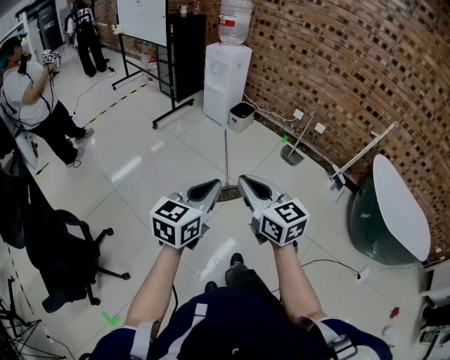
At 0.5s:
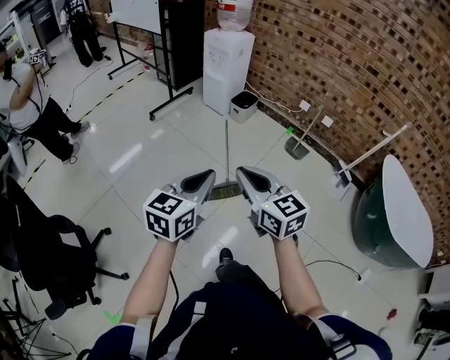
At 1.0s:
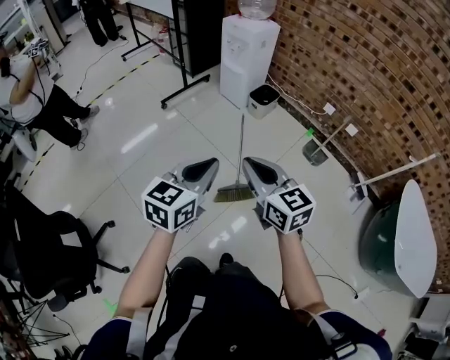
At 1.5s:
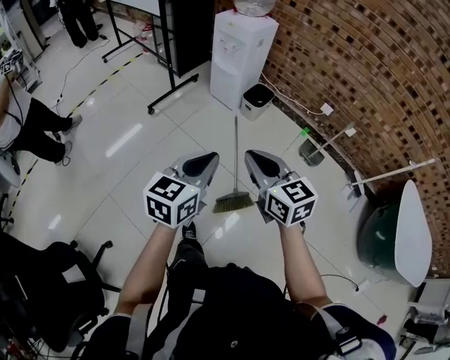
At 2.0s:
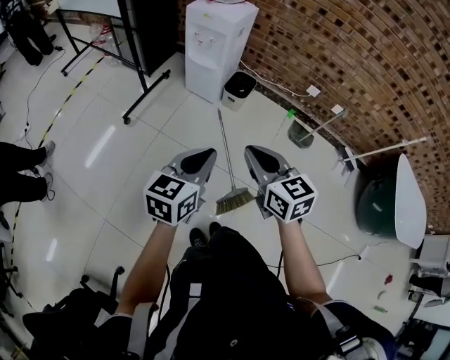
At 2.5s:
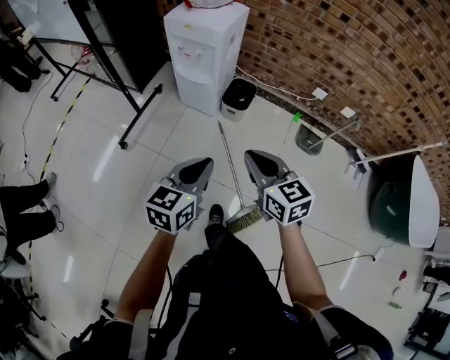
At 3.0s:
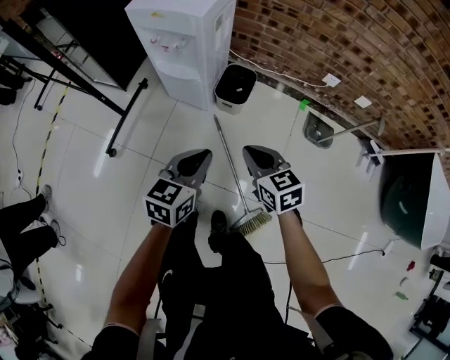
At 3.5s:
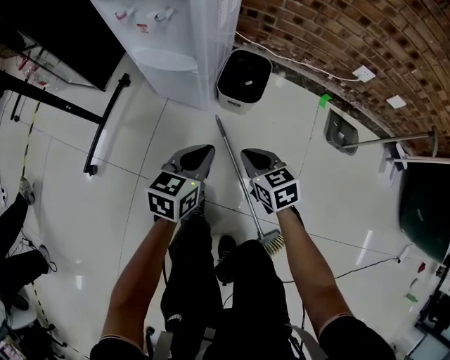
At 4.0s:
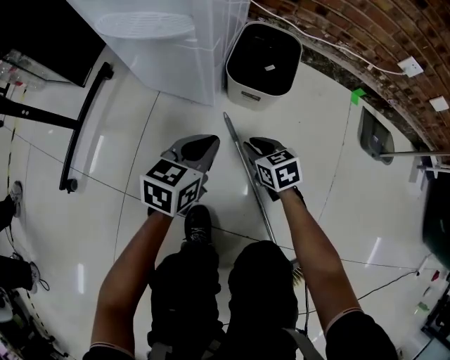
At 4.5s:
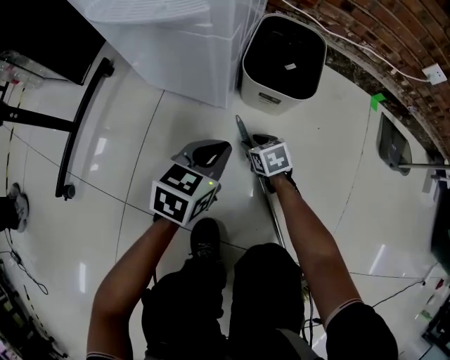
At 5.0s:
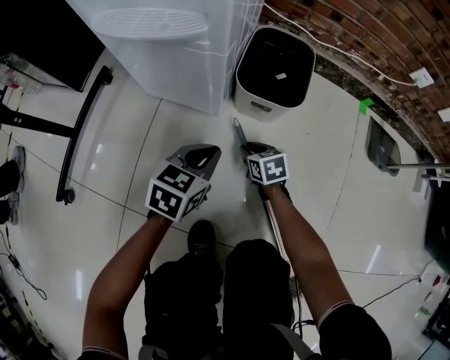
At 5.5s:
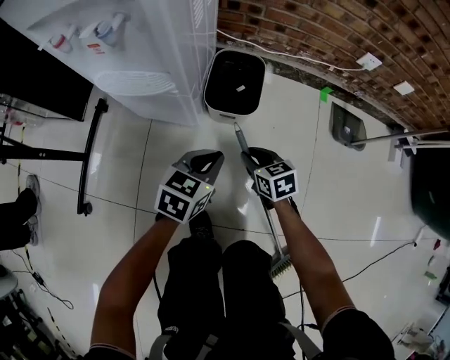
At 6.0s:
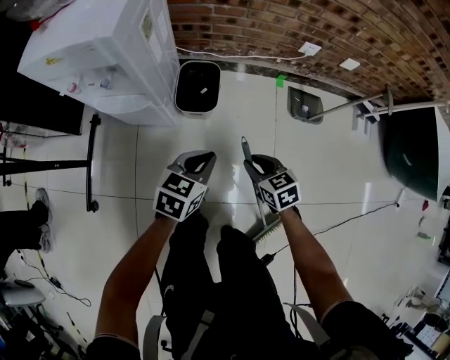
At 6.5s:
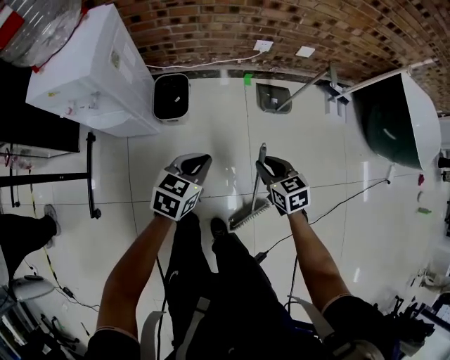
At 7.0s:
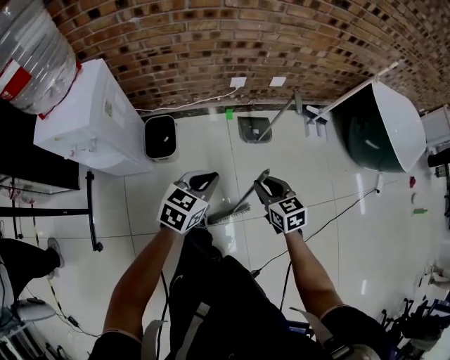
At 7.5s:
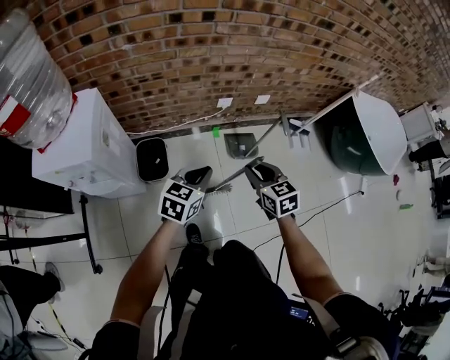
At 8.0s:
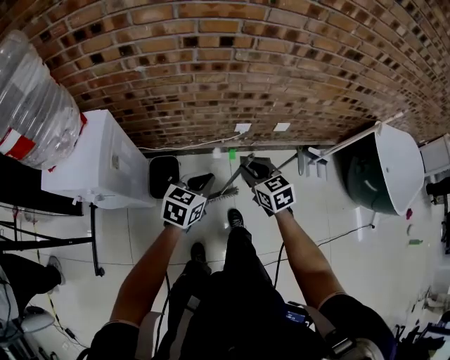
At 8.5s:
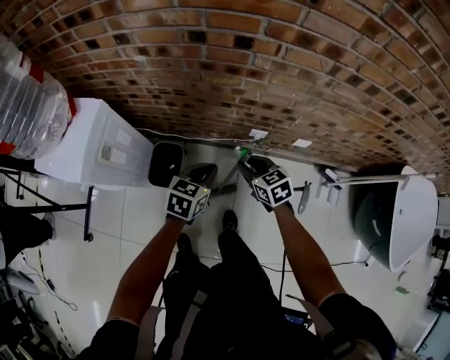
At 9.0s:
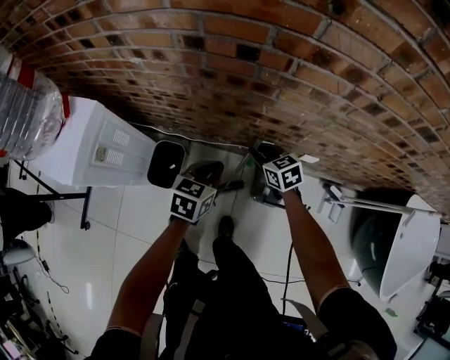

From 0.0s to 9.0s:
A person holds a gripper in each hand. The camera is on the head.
From 0.0s to 2.0s: The two grippers travel together, forward, about 50 cm.
From 2.0s to 4.5s: The pair of grippers is taken forward, some 50 cm. The grippers both shift downward by about 80 cm. The right gripper angles its fingers downward, by roughly 40 degrees, and opens; the left gripper turns by about 30 degrees.
From 4.5s to 7.0s: Both grippers move upward, some 60 cm. The left gripper rotates about 30 degrees. The right gripper changes its angle by about 40 degrees.
From 7.0s to 9.0s: The right gripper reaches approximately 10 cm upward, then returns, and turns by roughly 30 degrees, while the left gripper moves roughly 35 cm, and swivels approximately 30 degrees.

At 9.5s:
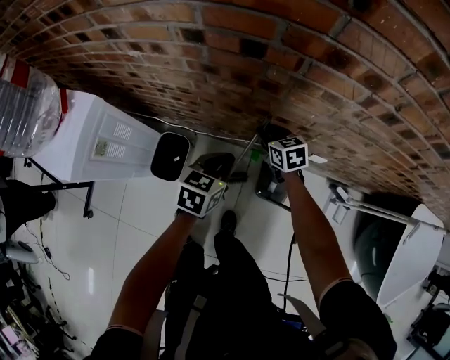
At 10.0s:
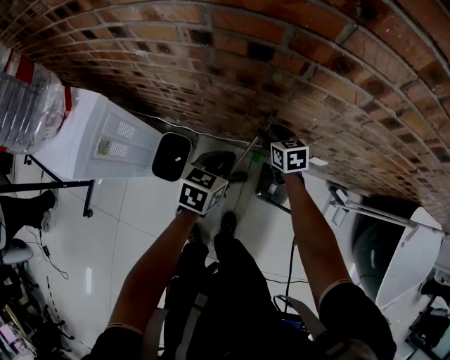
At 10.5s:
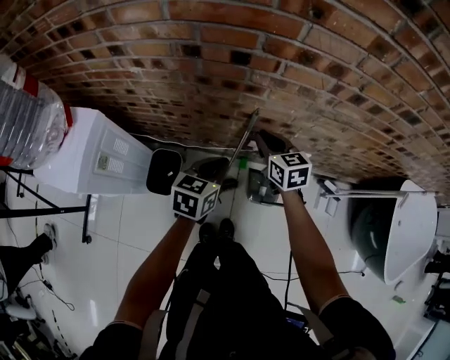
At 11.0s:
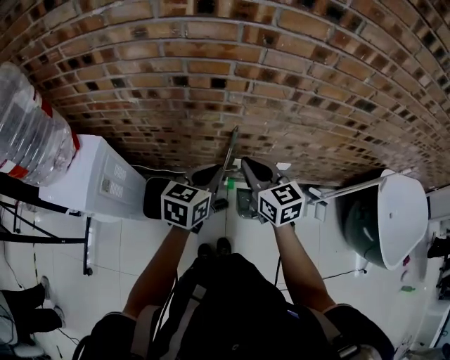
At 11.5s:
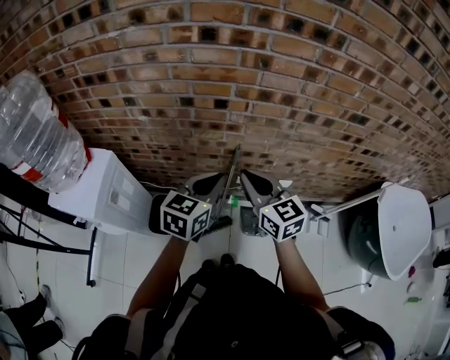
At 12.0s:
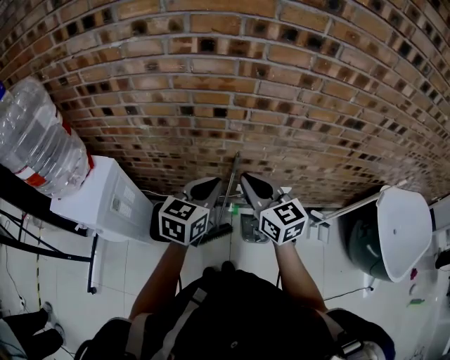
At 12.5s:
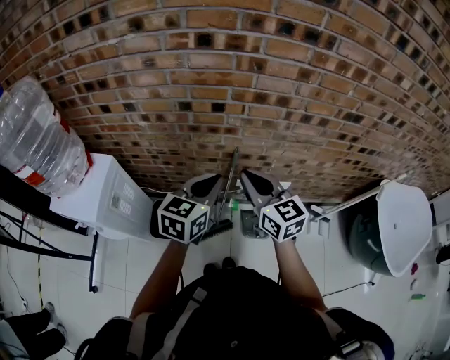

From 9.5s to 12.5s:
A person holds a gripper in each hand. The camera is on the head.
From 9.5s to 11.0s: The right gripper is displaced upward and backward by roughly 30 cm, changes its angle by about 30 degrees, and opens and closes again; the left gripper is displaced upward by approximately 15 cm.
From 11.0s to 12.5s: Both grippers move upward, roughly 5 cm.

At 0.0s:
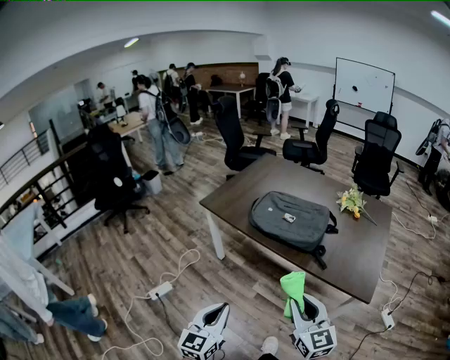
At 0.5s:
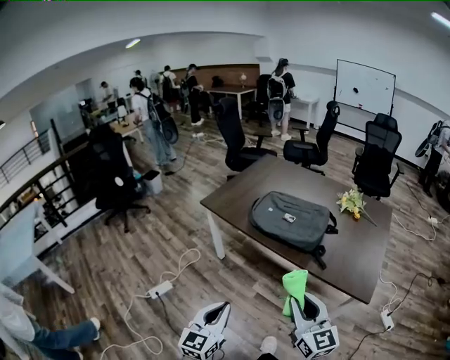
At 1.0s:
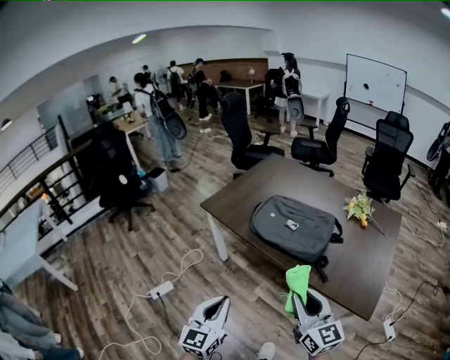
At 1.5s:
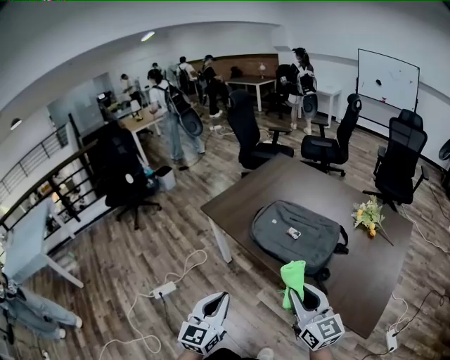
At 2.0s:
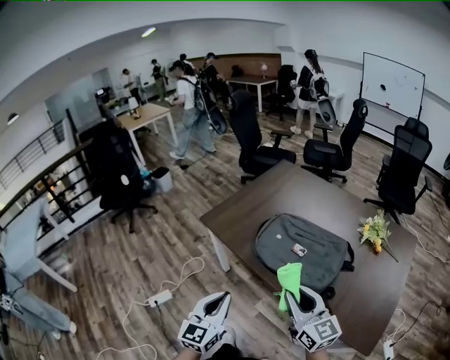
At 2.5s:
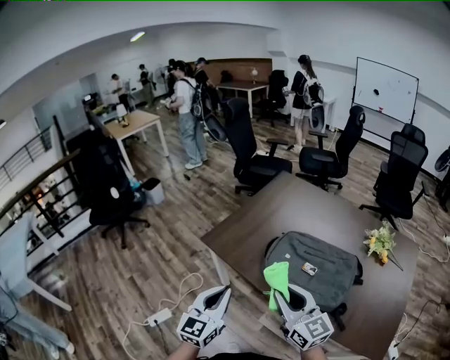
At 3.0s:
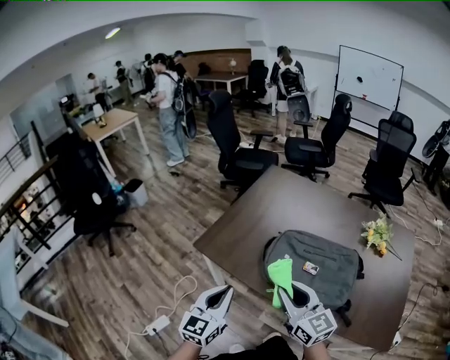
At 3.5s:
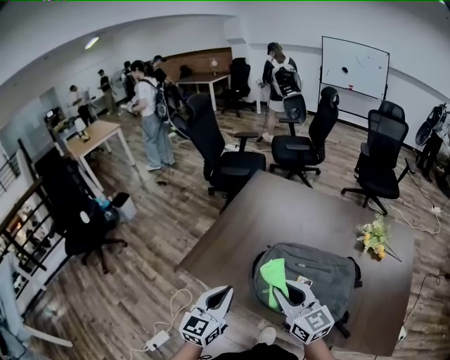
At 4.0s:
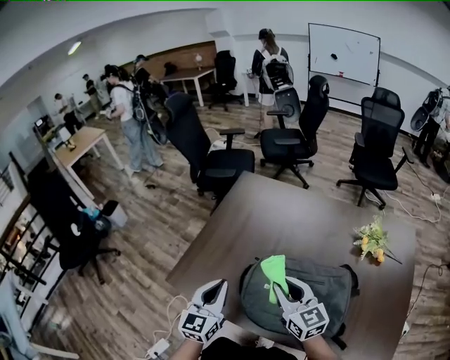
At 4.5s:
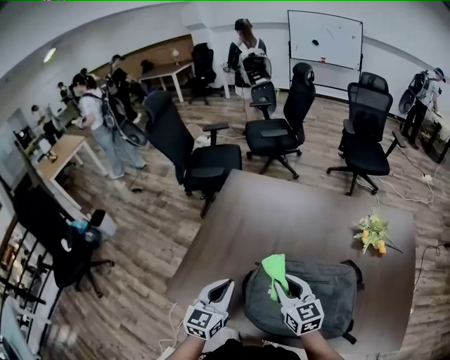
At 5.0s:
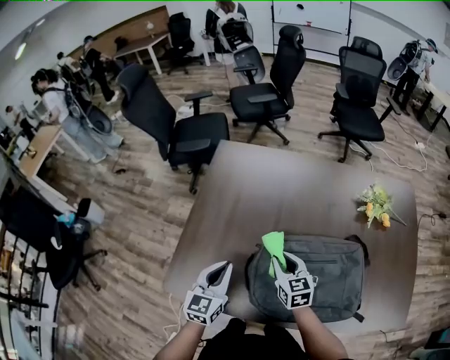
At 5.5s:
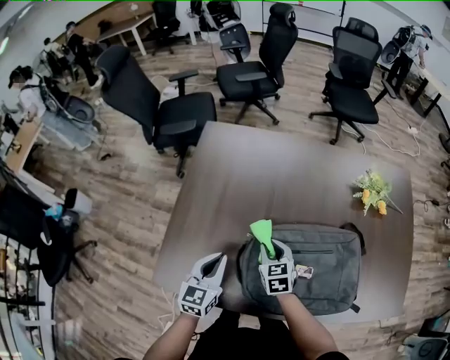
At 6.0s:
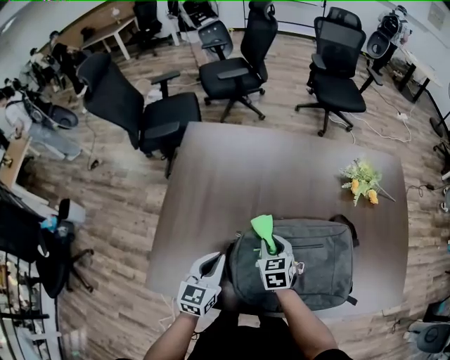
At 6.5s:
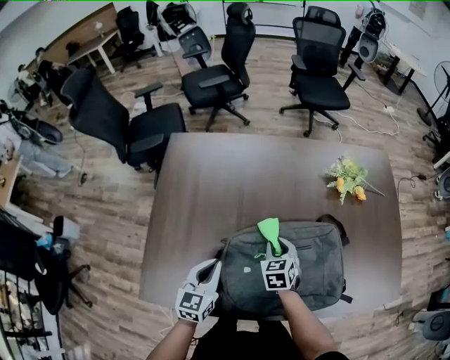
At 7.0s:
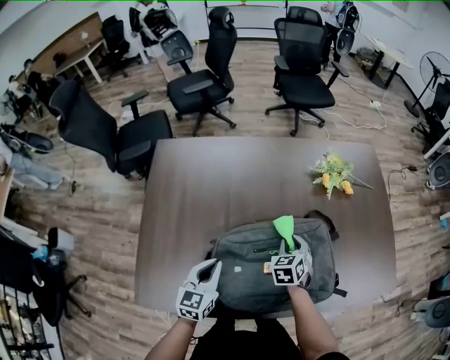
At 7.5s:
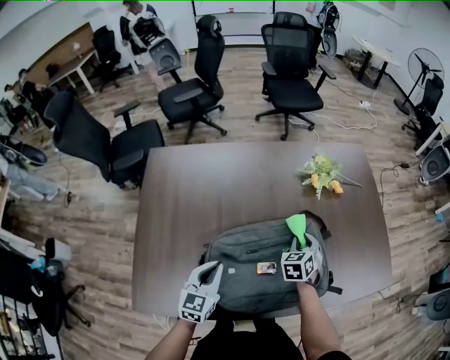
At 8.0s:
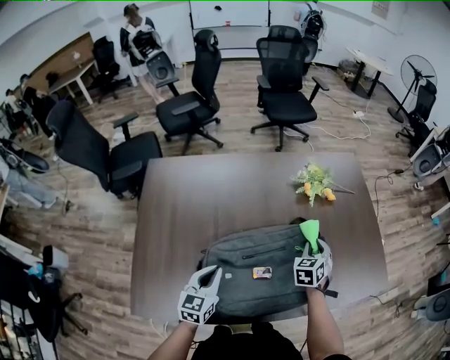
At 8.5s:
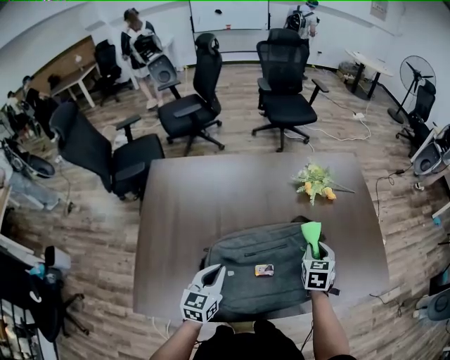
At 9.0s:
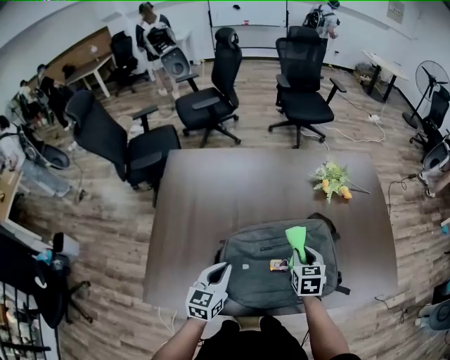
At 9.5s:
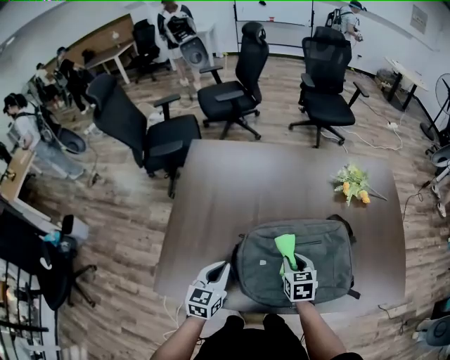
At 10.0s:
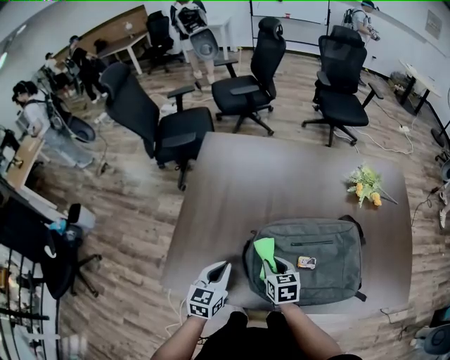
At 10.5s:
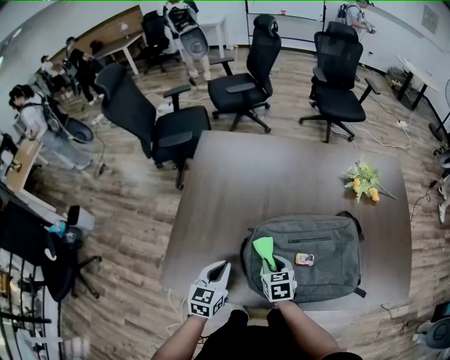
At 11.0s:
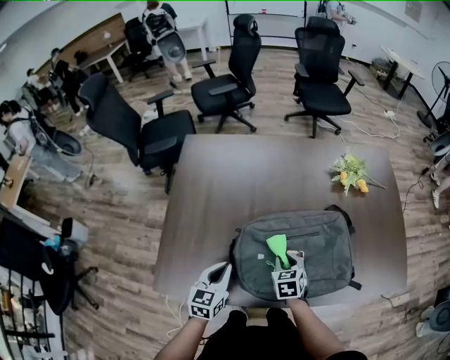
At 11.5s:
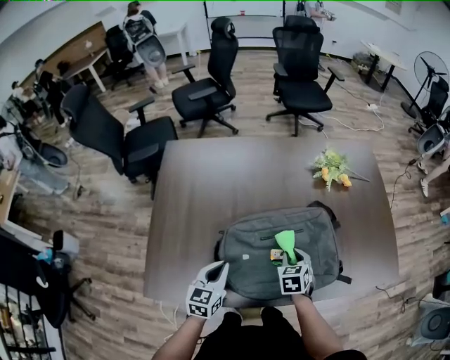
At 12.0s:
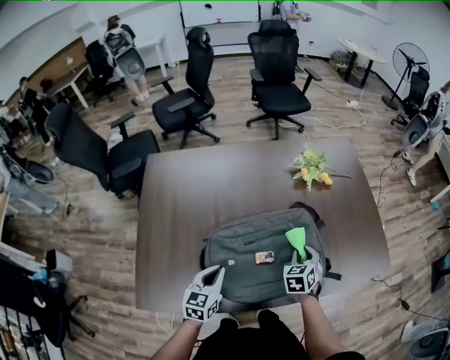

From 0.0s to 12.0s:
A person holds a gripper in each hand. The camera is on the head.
From 0.0s to 2.0s: Both grippers travel together forward, roughly 20 cm.
From 2.0s to 4.0s: Both grippers move forward, some 35 cm.
From 4.0s to 6.0s: The left gripper travels downward by roughly 10 cm, and rotates approximately 30 degrees. Meanwhile the right gripper goes some 20 cm downward, and angles its fingers downward, by roughly 30 degrees.
From 6.0s to 8.0s: The right gripper ends up some 30 cm from where it was, and turns by some 40 degrees; the left gripper changes place by some 10 cm.
From 8.0s to 10.0s: The left gripper moves about 15 cm. Meanwhile the right gripper ends up about 35 cm from where it was, and rotates roughly 50 degrees.
From 10.0s to 12.0s: The left gripper shifts by about 10 cm. The right gripper ends up some 25 cm from where it was, and swivels roughly 40 degrees.

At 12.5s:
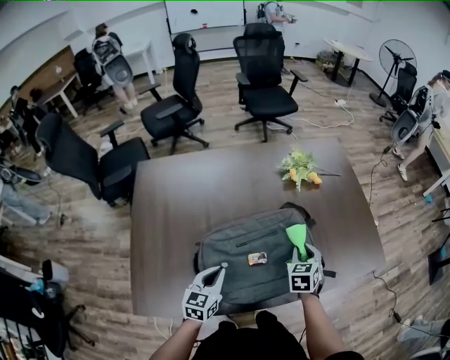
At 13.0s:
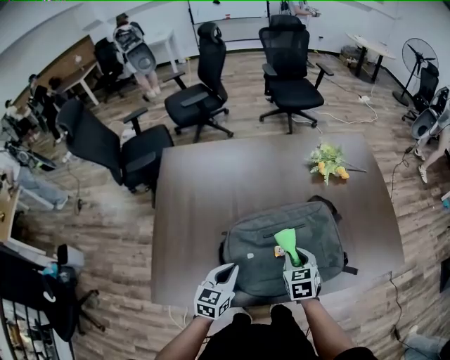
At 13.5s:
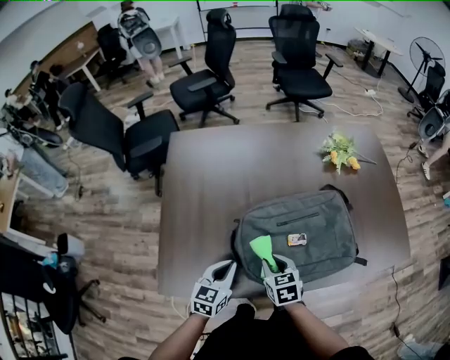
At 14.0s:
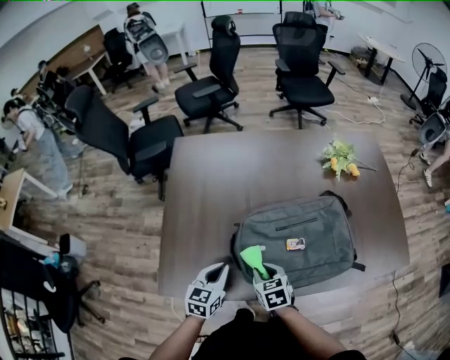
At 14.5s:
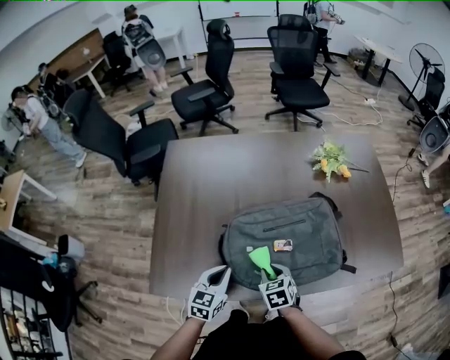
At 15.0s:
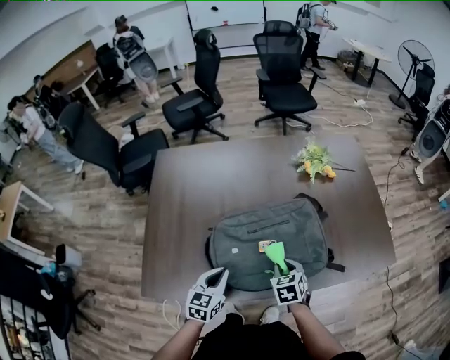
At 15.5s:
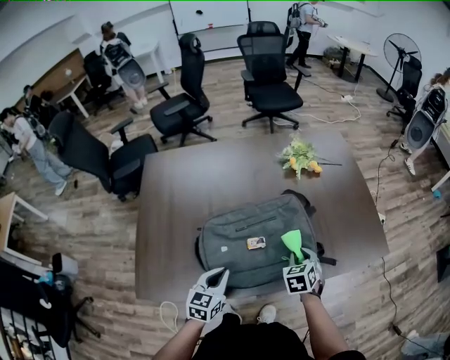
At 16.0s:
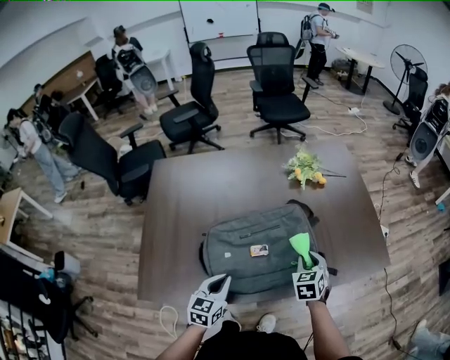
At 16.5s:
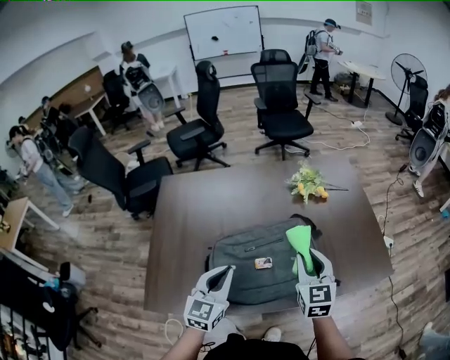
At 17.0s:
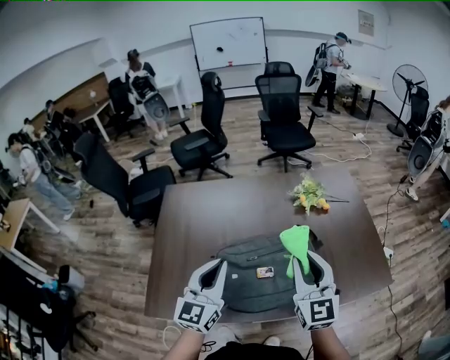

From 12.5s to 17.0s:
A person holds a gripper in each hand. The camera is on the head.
From 12.5s to 14.5s: The right gripper changes place by approximately 25 cm, and changes its angle by some 30 degrees.
From 14.5s to 17.0s: The left gripper travels upward by some 25 cm, and tilts its fingers about 30 degrees upward, while the right gripper shifts about 35 cm upward and to the right, and points its fingers roughly 50 degrees further upward.
